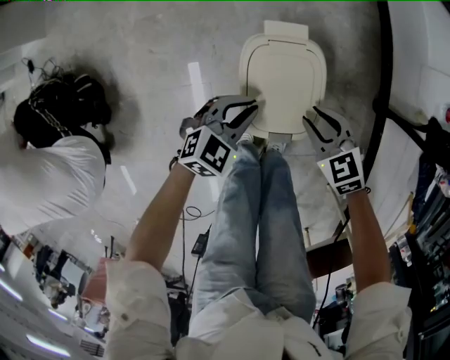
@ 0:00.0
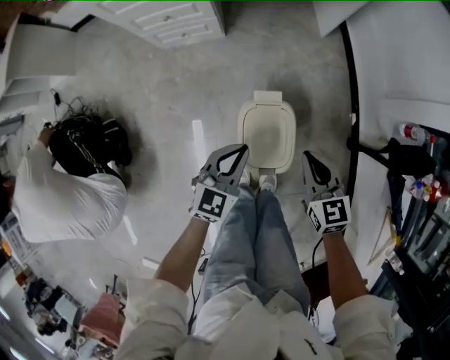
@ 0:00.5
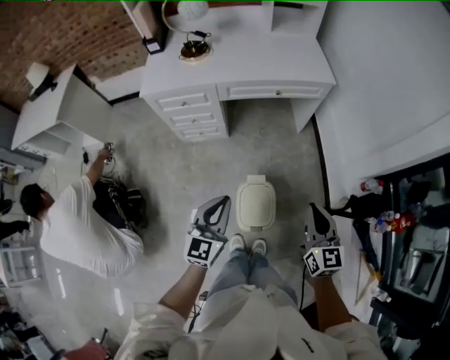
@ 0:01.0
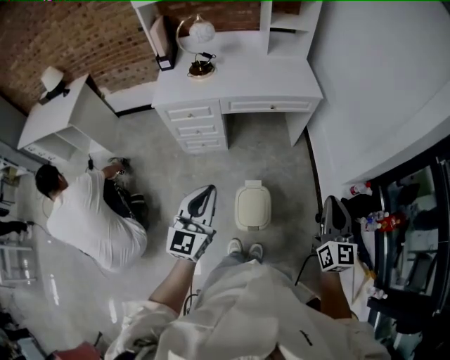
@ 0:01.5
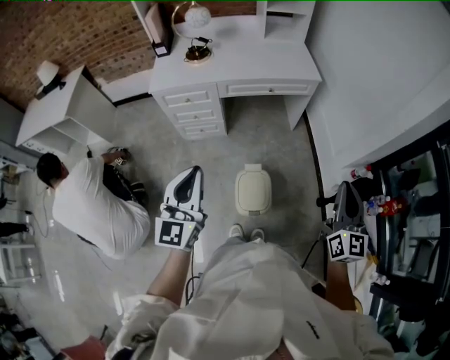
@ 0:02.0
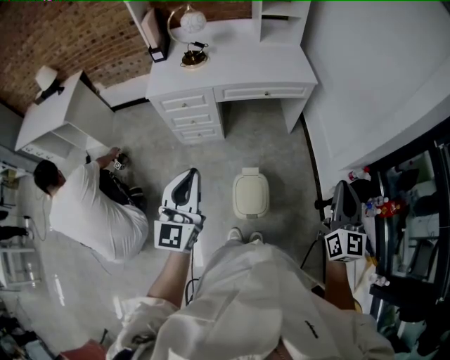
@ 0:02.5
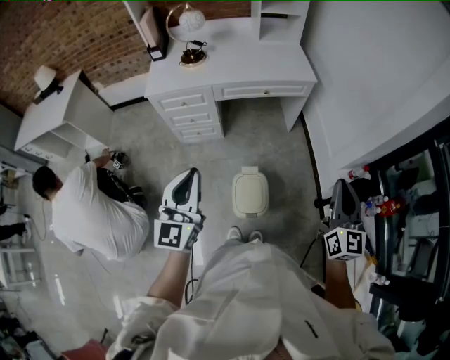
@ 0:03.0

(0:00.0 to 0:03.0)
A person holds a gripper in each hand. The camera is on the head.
0:00.0 - 0:01.5: Both grippers move upward, some 70 cm. The left gripper tilts its fingers approximately 40 degrees upward, while the right gripper tips its fingers upward by roughly 50 degrees.
0:01.5 - 0:03.0: The grippers make only small movements.

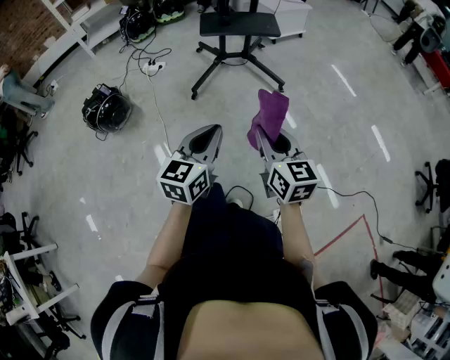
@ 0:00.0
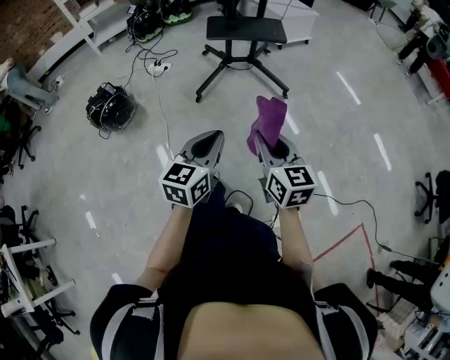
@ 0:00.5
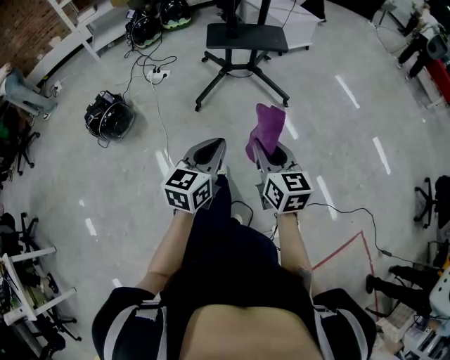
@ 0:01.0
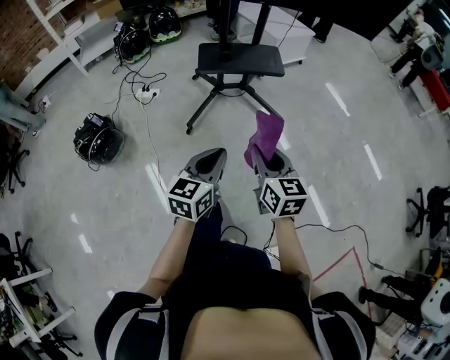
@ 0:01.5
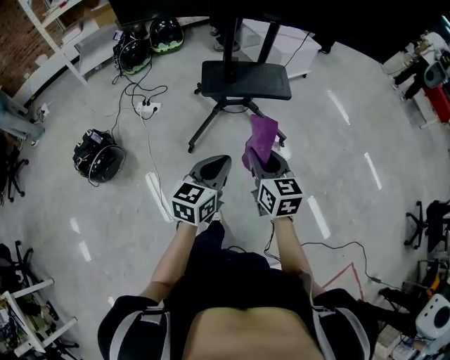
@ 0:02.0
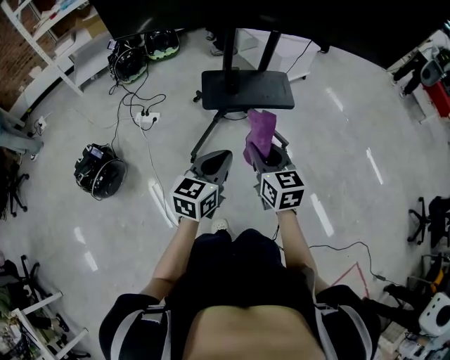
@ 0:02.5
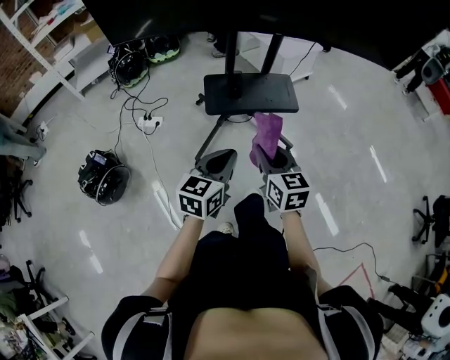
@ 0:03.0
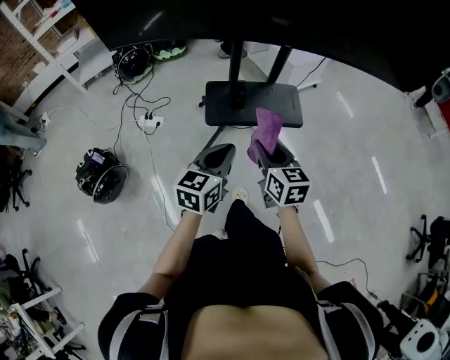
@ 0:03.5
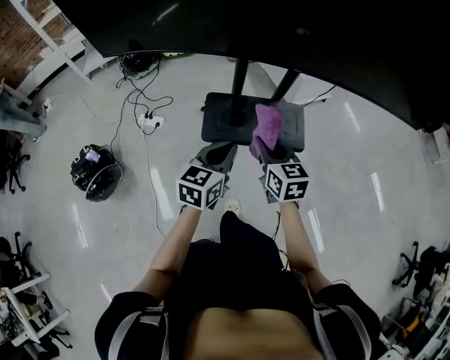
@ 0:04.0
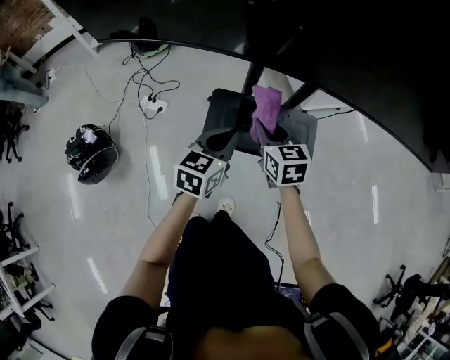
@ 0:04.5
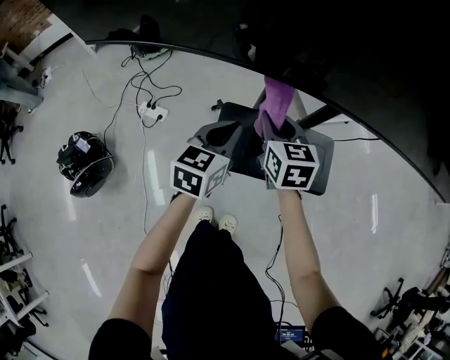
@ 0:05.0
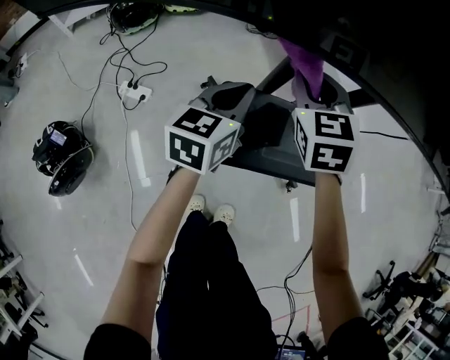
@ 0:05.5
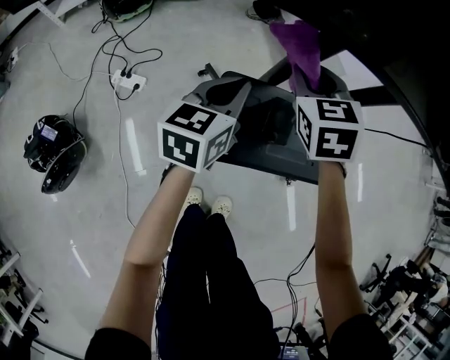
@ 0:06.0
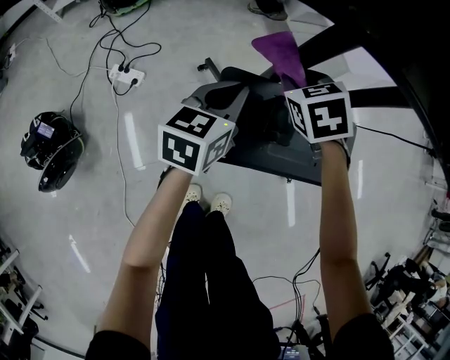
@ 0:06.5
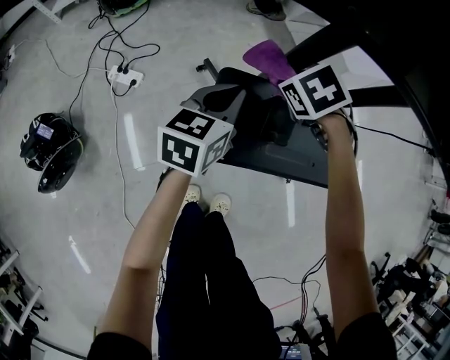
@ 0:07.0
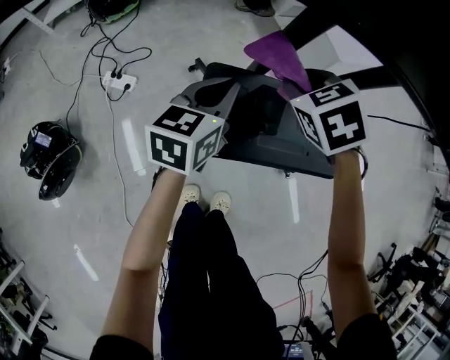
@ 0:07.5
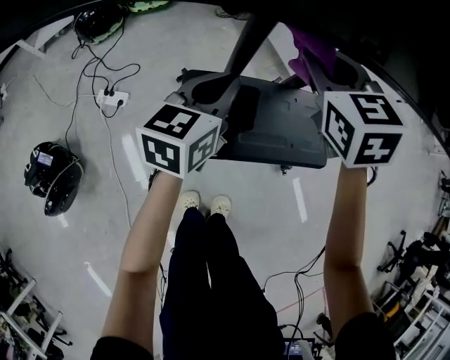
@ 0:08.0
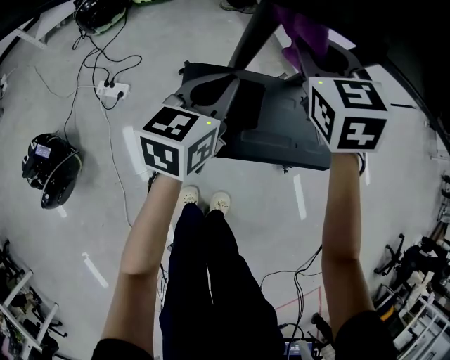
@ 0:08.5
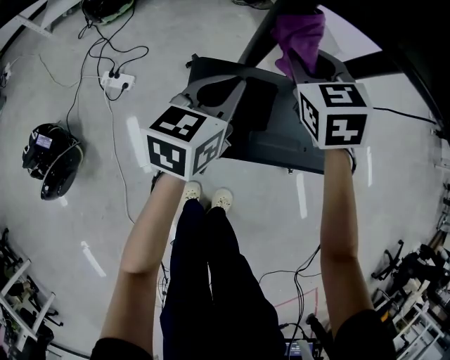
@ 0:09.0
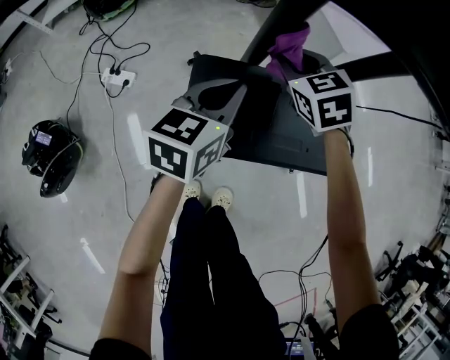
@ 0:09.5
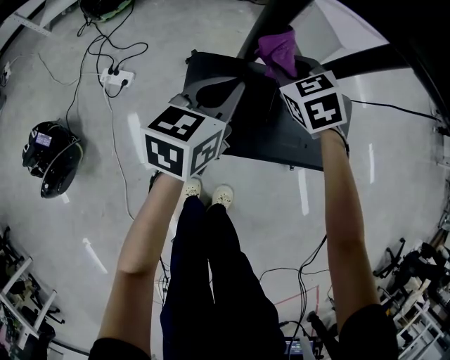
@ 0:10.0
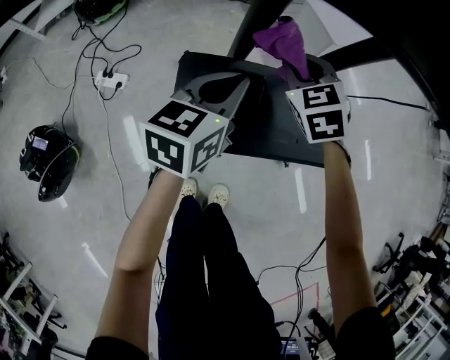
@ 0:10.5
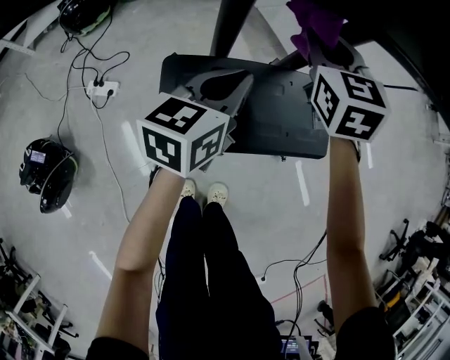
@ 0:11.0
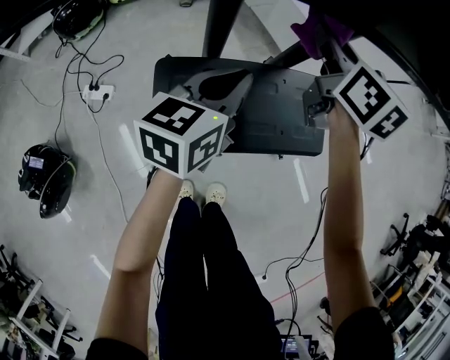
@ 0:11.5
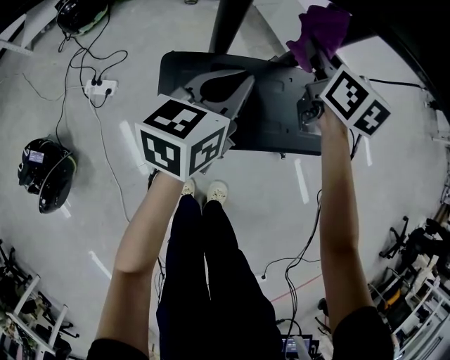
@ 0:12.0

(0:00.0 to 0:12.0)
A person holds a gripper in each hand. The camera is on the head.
0:00.0 - 0:02.0: The two grippers go some 30 cm forward.
0:02.0 - 0:04.0: Both grippers move forward, roughly 35 cm.
0:04.0 - 0:06.0: The right gripper goes some 30 cm forward, and rotates approximately 30 degrees; the left gripper heads forward and downward, covering roughly 30 cm.
0:06.0 - 0:08.0: The right gripper shifts about 15 cm to the right and upward, while the left gripper shifts roughly 10 cm to the right.
0:08.0 - 0:10.0: The right gripper moves downward, roughly 20 cm, and changes its angle by some 20 degrees. The left gripper moves downward, about 5 cm.
0:10.0 - 0:12.0: The right gripper goes roughly 15 cm to the right and upward, and rotates around the line of its fingers by about 50 degrees, clockwise from behind. Meanwhile the left gripper shifts approximately 5 cm to the right.

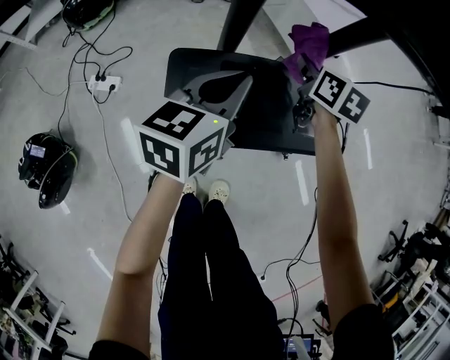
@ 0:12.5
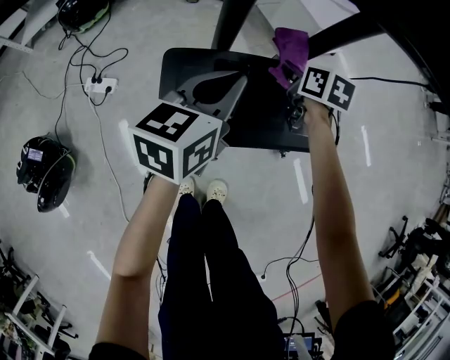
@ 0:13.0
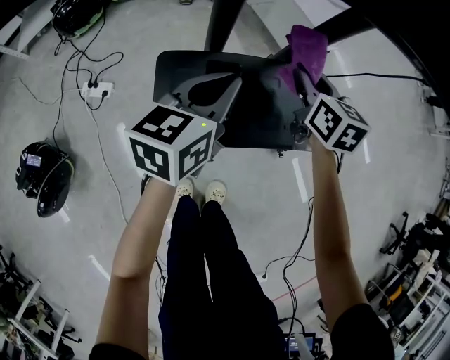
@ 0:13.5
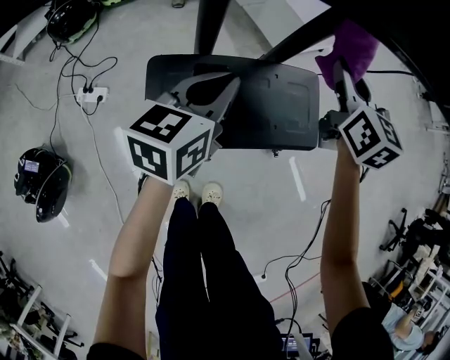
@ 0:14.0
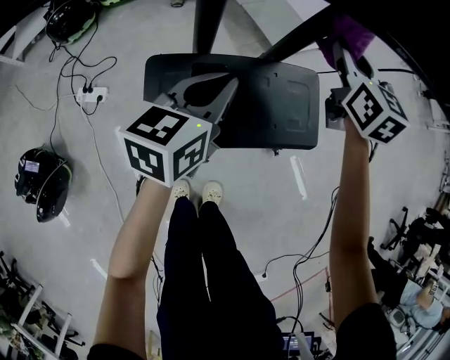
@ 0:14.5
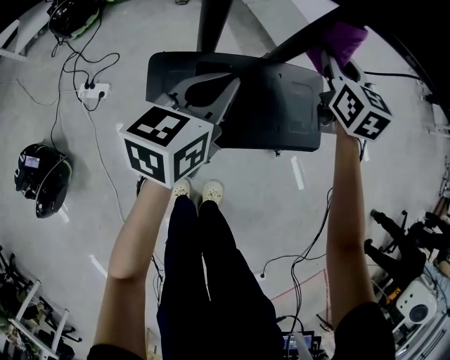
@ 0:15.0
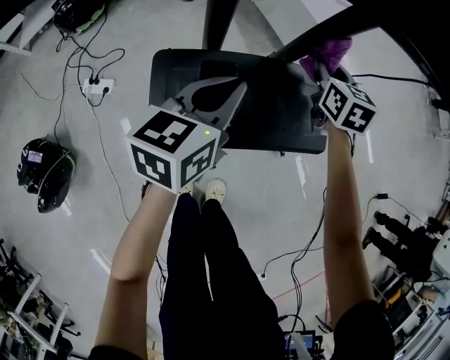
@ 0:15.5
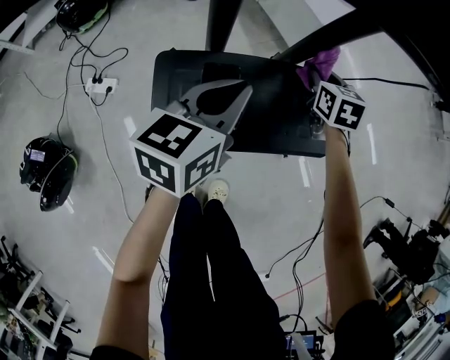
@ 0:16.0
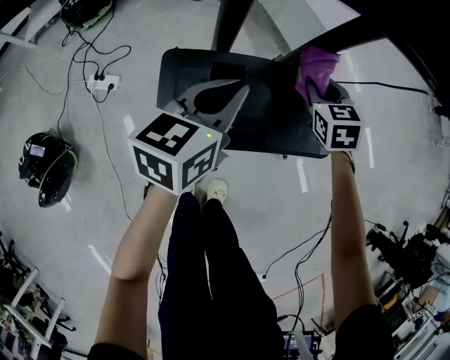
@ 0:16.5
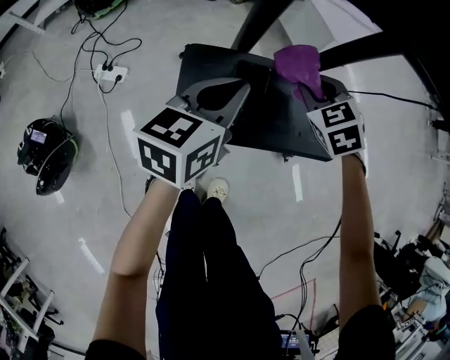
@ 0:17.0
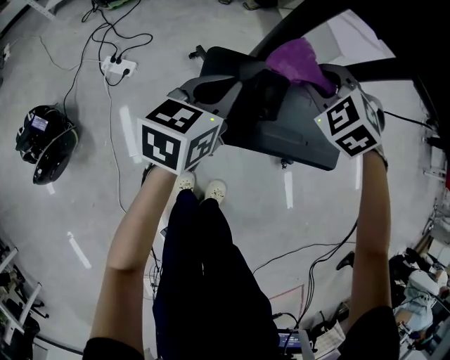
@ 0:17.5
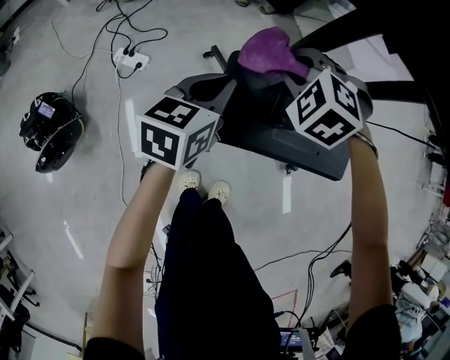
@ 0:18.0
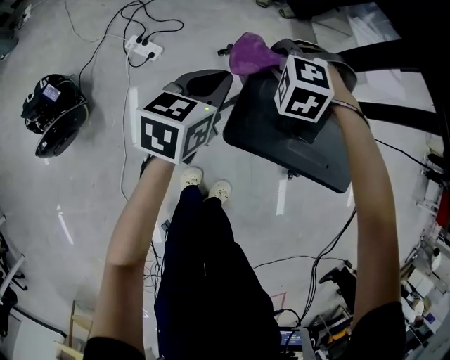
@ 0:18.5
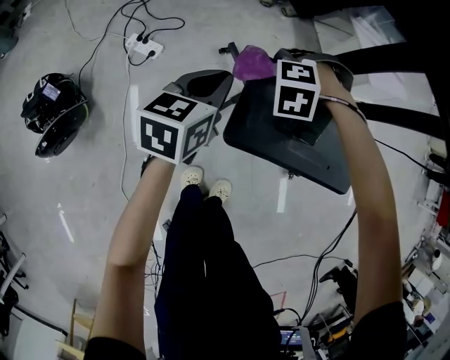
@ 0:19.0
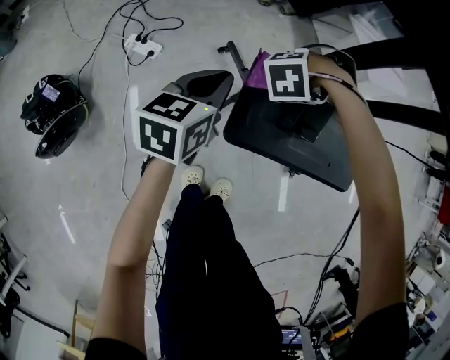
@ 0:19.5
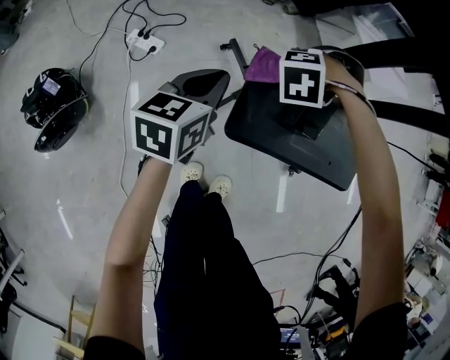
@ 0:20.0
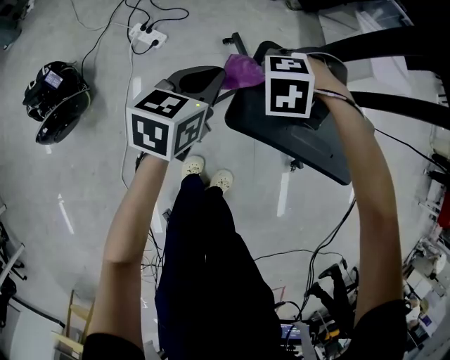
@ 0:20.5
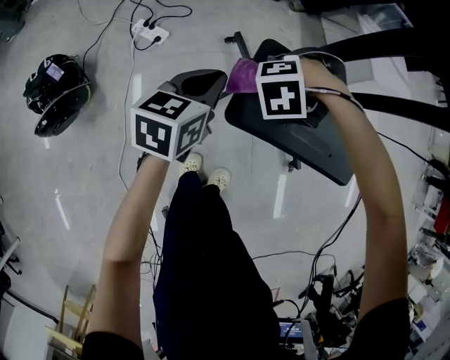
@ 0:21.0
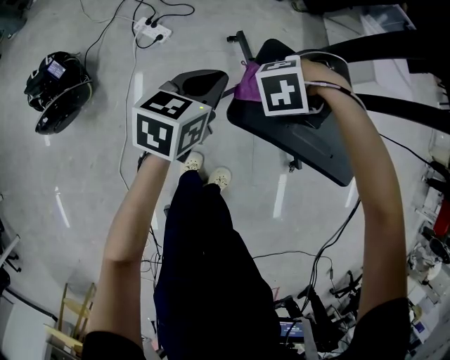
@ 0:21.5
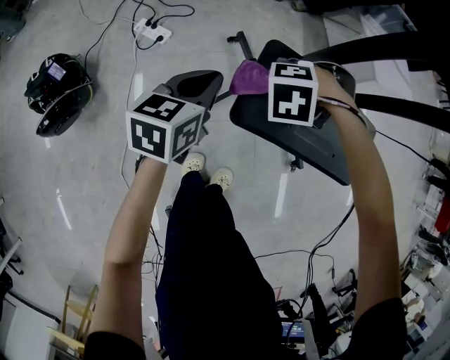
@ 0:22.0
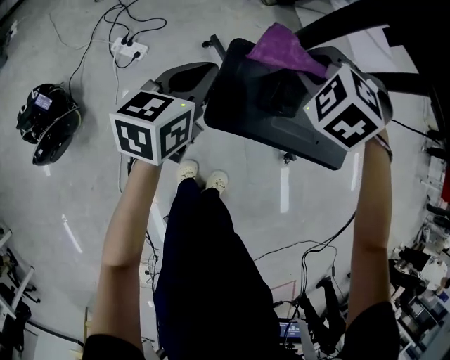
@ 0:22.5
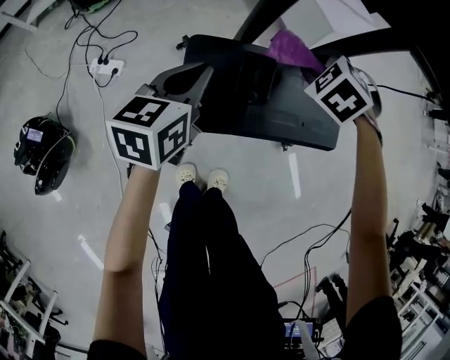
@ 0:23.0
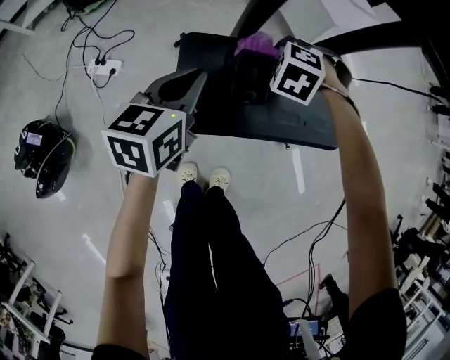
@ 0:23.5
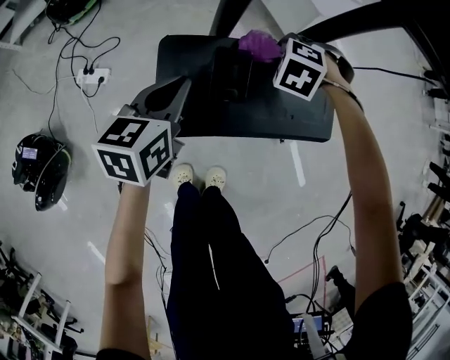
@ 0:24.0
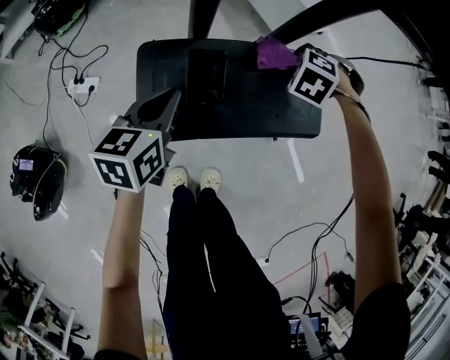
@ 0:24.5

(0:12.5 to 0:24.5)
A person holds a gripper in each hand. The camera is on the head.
0:12.5 - 0:14.5: The right gripper is displaced upward and to the right by some 15 cm, and changes its angle by some 30 degrees.
0:14.5 - 0:16.5: The right gripper is displaced downward by roughly 15 cm, and turns by about 30 degrees.
0:16.5 - 0:18.5: The left gripper is displaced to the left by roughly 25 cm; the right gripper shifts approximately 35 cm to the left, and twists roughly 80 degrees counterclockwise, seen from behind.
0:18.5 - 0:20.5: The right gripper shifts by approximately 10 cm, and rotates some 20 degrees.
0:20.5 - 0:22.5: The right gripper moves upward, approximately 15 cm, and swivels roughly 40 degrees, while the left gripper moves approximately 5 cm.
0:22.5 - 0:24.5: The left gripper moves some 15 cm. The right gripper changes place by some 30 cm, and turns by some 20 degrees.
